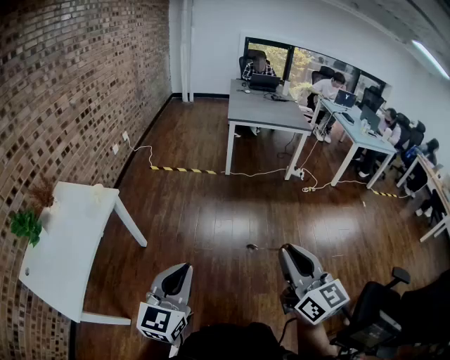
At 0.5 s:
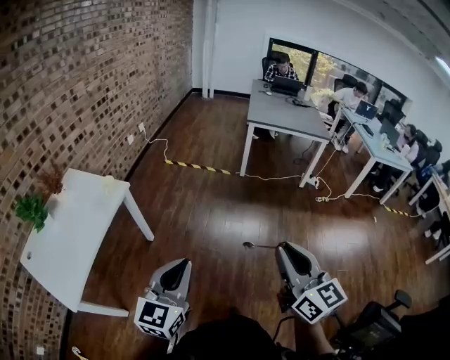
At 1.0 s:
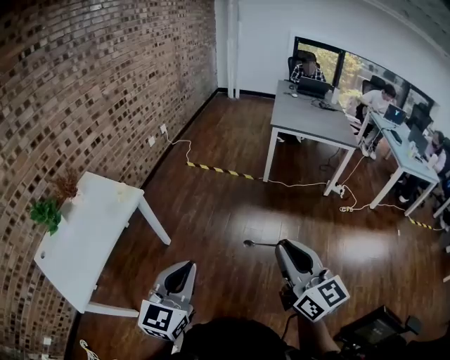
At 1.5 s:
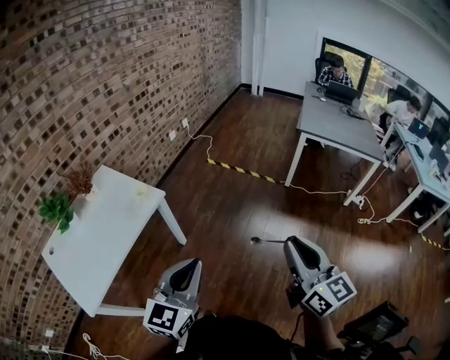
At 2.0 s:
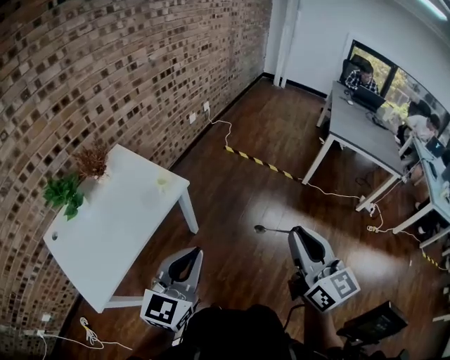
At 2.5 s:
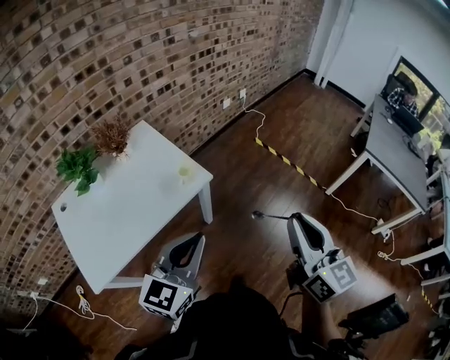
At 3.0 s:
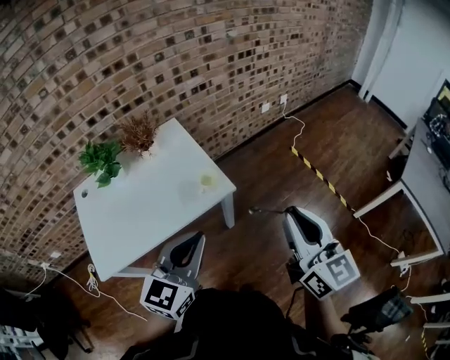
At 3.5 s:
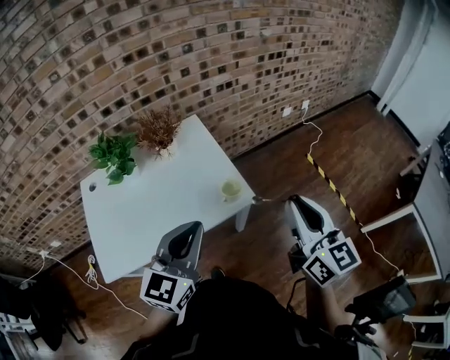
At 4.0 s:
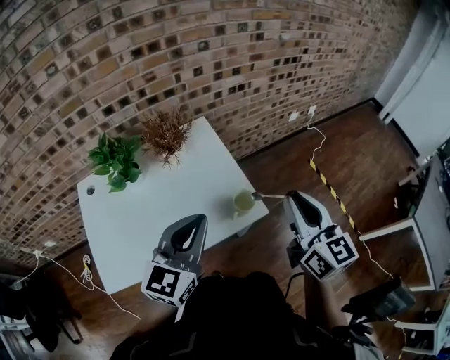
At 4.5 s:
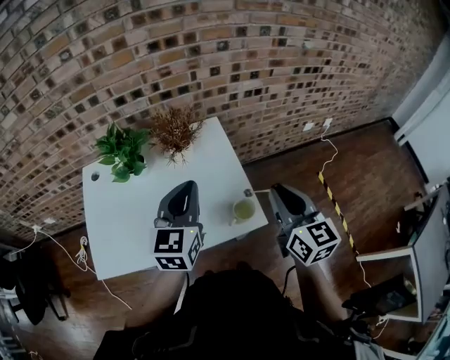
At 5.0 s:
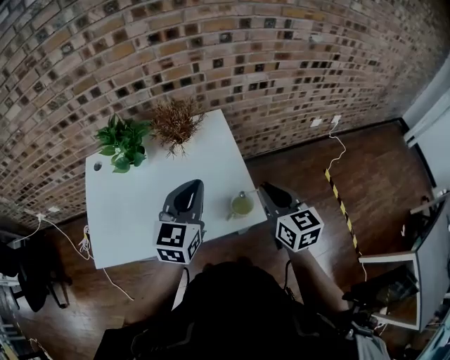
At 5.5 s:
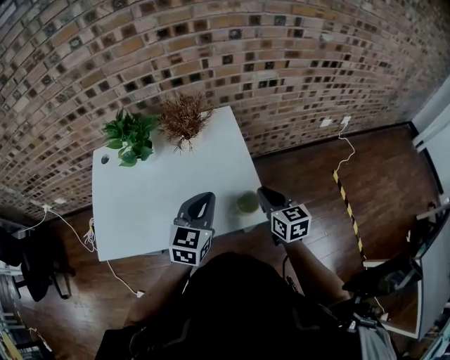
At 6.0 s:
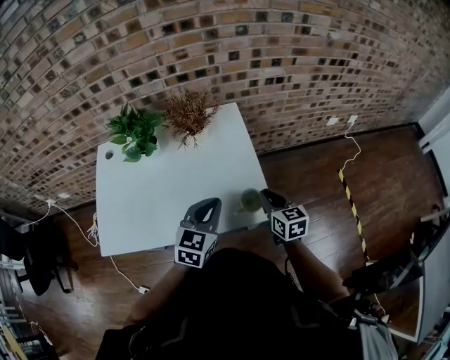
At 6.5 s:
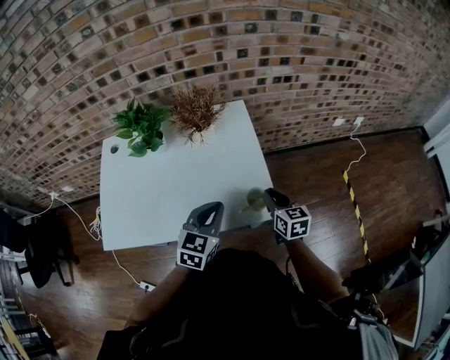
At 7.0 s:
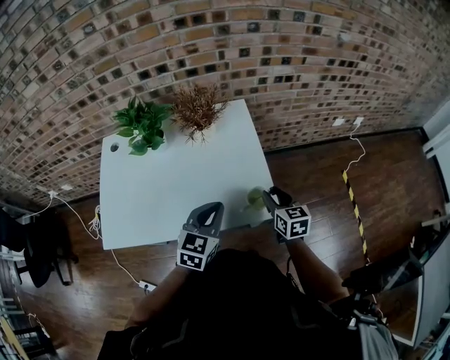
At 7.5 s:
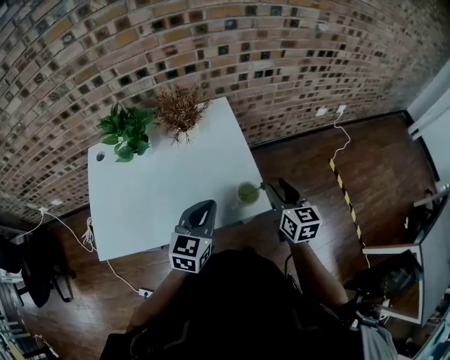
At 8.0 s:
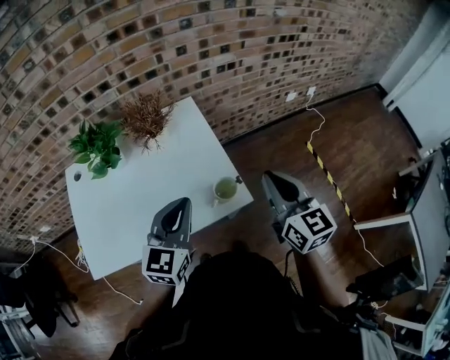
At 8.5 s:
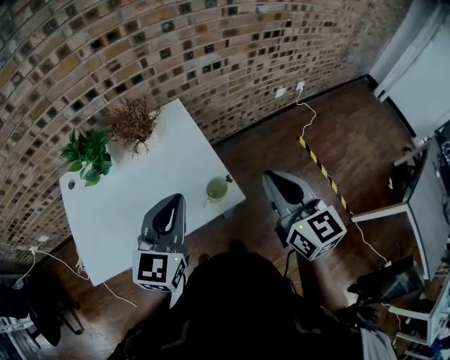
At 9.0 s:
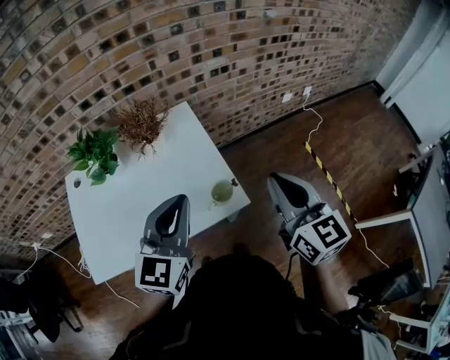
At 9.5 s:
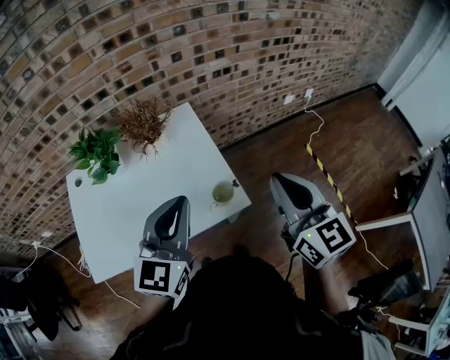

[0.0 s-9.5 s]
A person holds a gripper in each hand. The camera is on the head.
0.0 to 2.0 s: The two grippers go roughly 35 cm forward and to the left. The left gripper rotates some 20 degrees. Meanwhile the right gripper changes its angle by approximately 20 degrees.
2.0 to 4.0 s: The left gripper changes place by roughly 35 cm, and turns by about 30 degrees. Meanwhile the right gripper ends up approximately 50 cm from where it was, and rotates about 30 degrees.
4.0 to 5.5 s: The right gripper travels downward and forward by some 25 cm, and turns by some 30 degrees. The left gripper heads downward and forward, covering approximately 15 cm, and swivels approximately 20 degrees.
5.5 to 7.5 s: The right gripper moves approximately 5 cm downward and comes back, and opens its fingers.
7.5 to 9.5 s: Both grippers travel together upward, approximately 20 cm. The right gripper closes its fingers.

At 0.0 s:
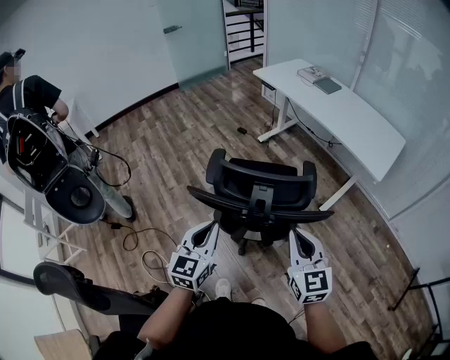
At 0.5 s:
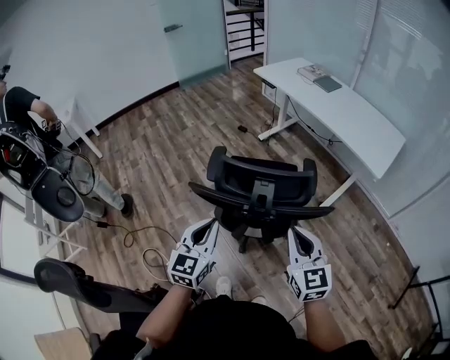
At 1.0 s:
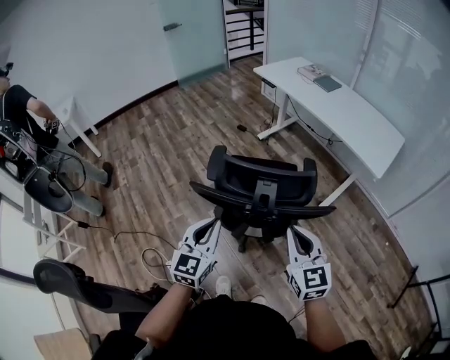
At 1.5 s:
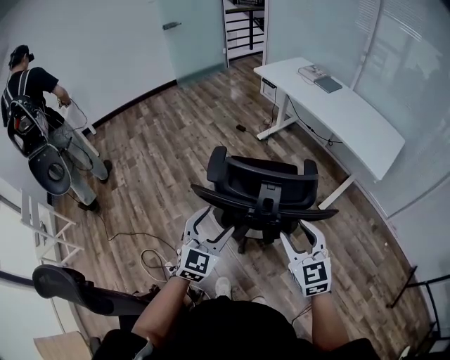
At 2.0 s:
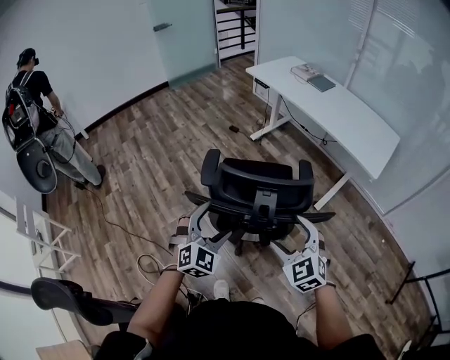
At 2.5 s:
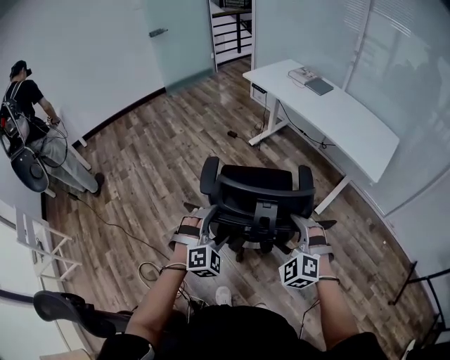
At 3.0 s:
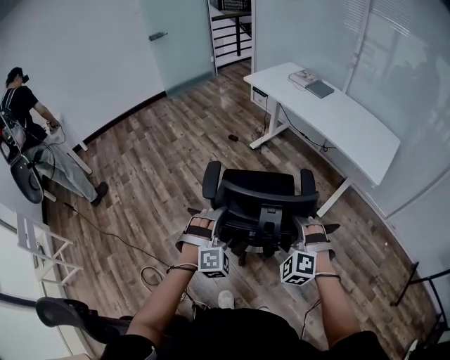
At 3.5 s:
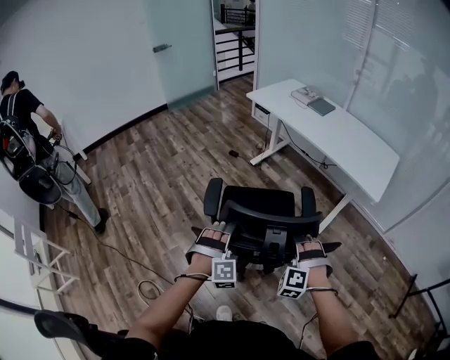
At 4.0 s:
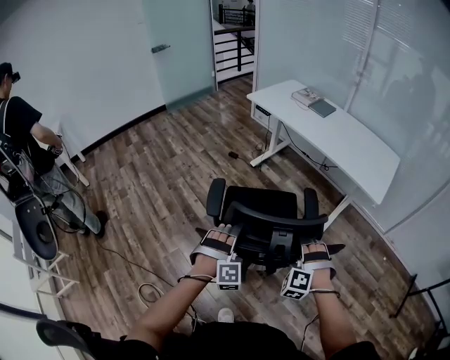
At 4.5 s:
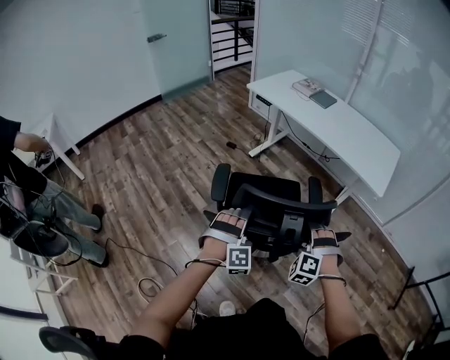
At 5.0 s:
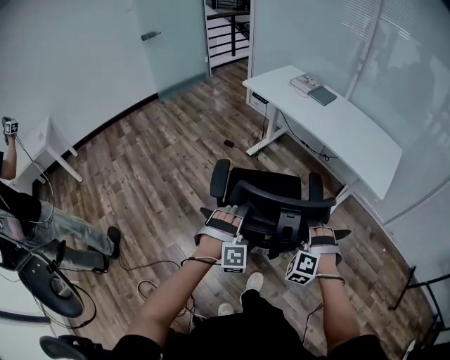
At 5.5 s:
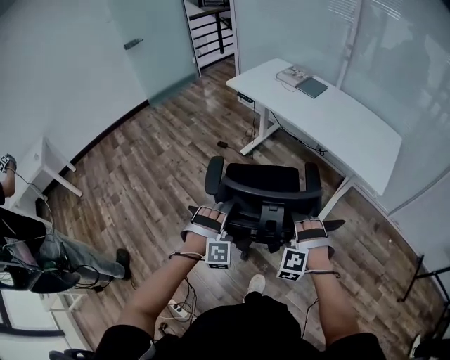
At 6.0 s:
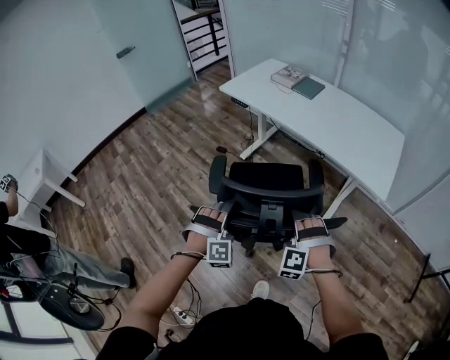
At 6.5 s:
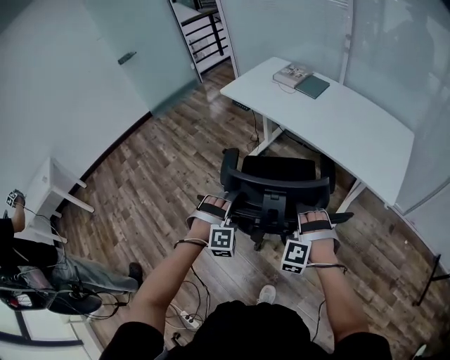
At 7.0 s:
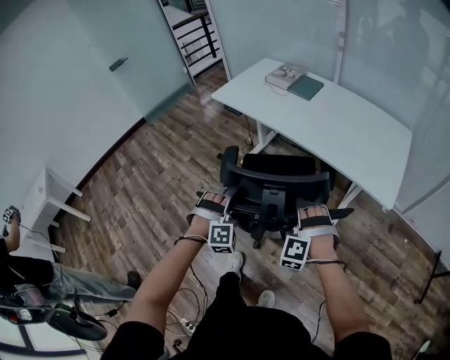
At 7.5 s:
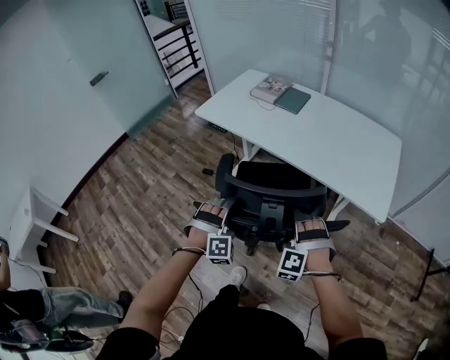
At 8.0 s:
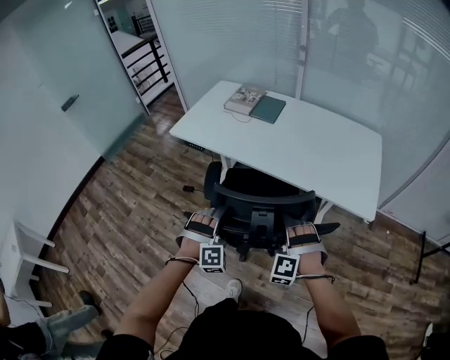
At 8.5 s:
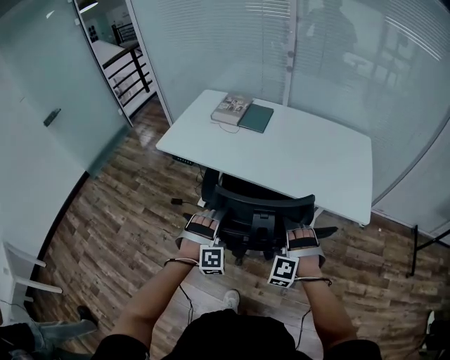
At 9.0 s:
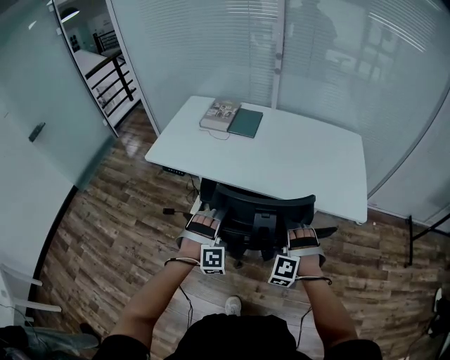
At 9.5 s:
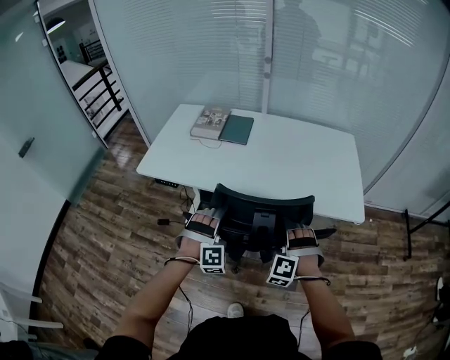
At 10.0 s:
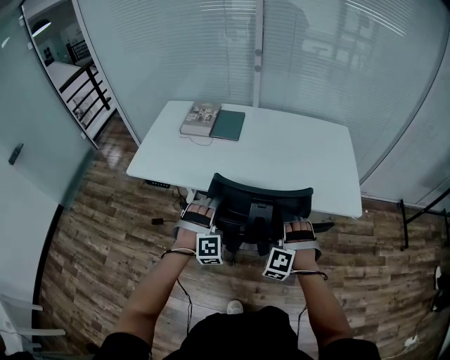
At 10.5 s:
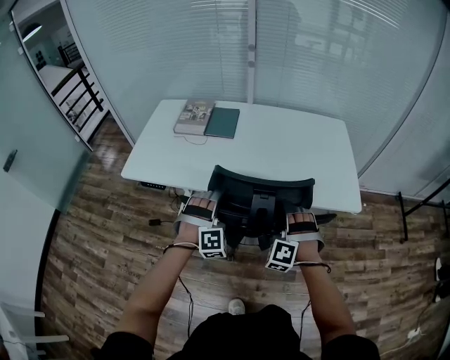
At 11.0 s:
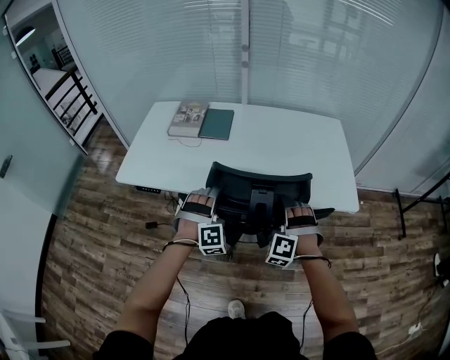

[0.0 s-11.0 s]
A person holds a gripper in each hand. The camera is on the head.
0.0 to 2.0 s: The left gripper ends up some 5 cm from where it was, twists about 40 degrees clockwise, seen from behind, and opens.
2.0 to 3.5 s: The left gripper goes about 5 cm downward, and rotates some 40 degrees.
3.5 to 5.5 s: The left gripper ends up roughly 15 cm from where it was.
5.5 to 7.5 s: The left gripper shifts by some 25 cm.
7.5 to 9.0 s: The left gripper ends up about 15 cm from where it was.
9.0 to 11.0 s: The left gripper shifts by about 15 cm.

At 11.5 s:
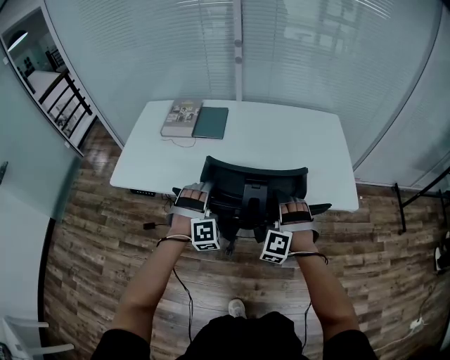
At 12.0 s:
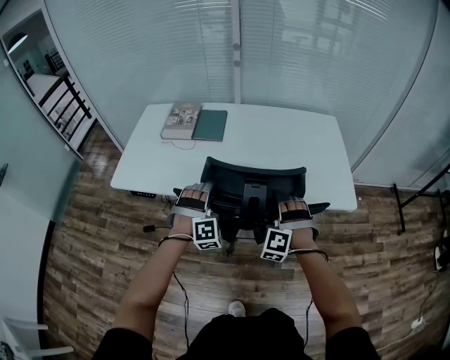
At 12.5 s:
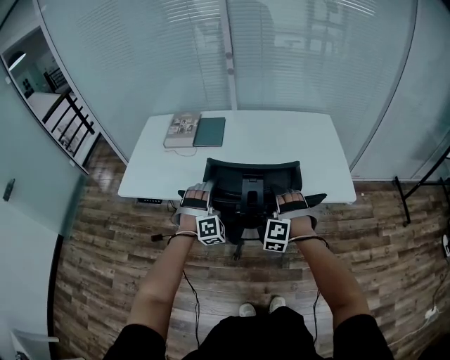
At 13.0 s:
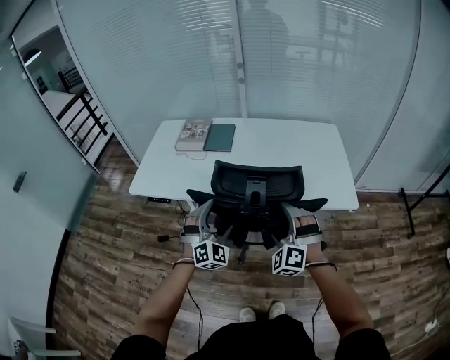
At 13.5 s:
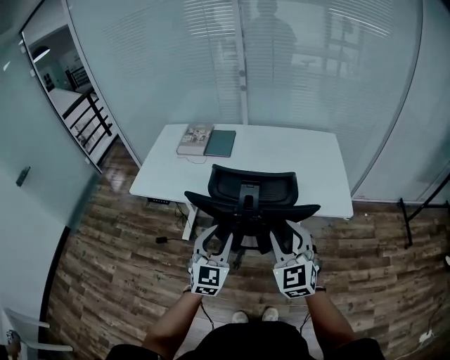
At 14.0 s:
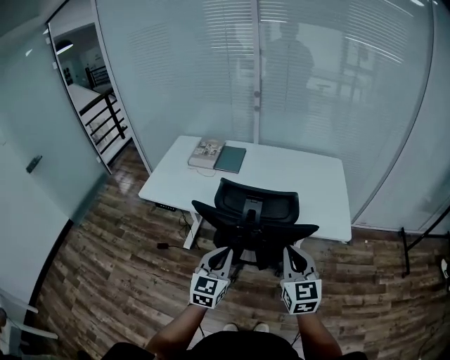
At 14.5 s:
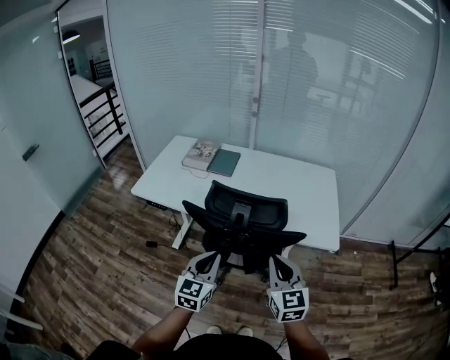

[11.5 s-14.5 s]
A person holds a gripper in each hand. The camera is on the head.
11.5 to 13.0 s: The left gripper ends up roughly 10 cm from where it was, and rotates approximately 30 degrees.
13.0 to 14.5 s: The left gripper moves about 15 cm, twists roughly 60 degrees counterclockwise, seen from behind, and closes its fingers.

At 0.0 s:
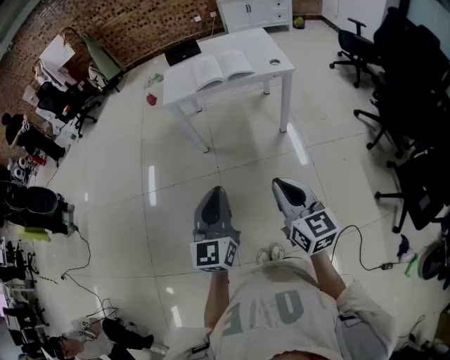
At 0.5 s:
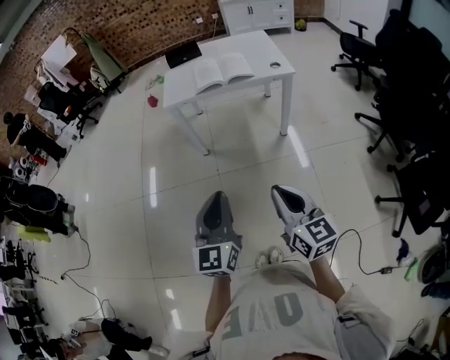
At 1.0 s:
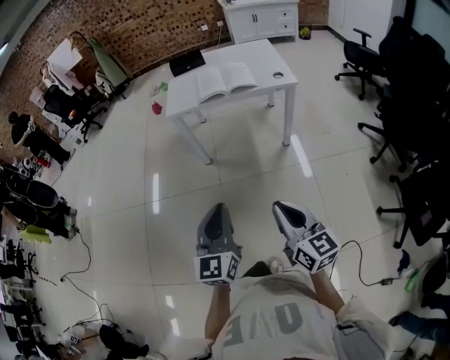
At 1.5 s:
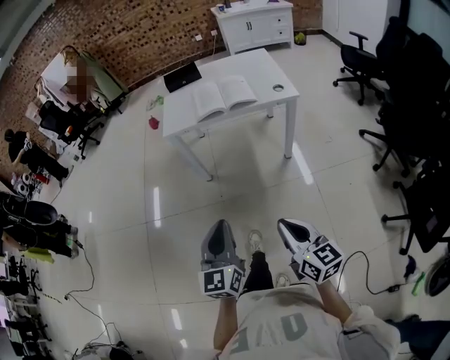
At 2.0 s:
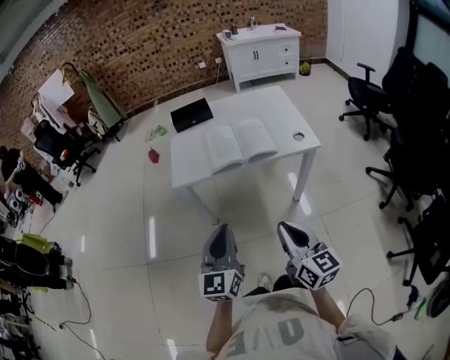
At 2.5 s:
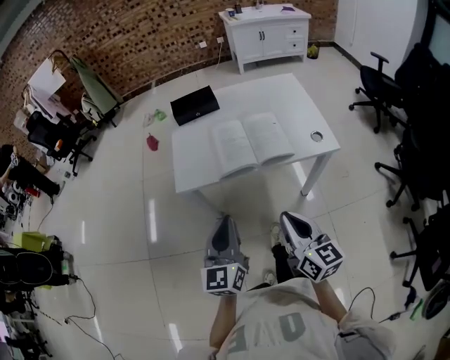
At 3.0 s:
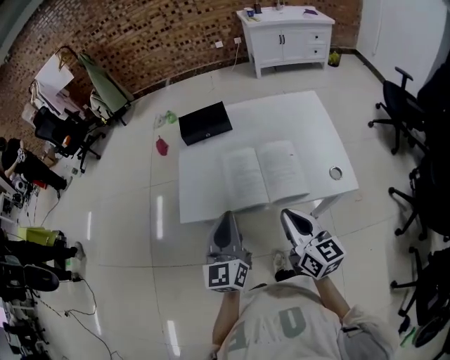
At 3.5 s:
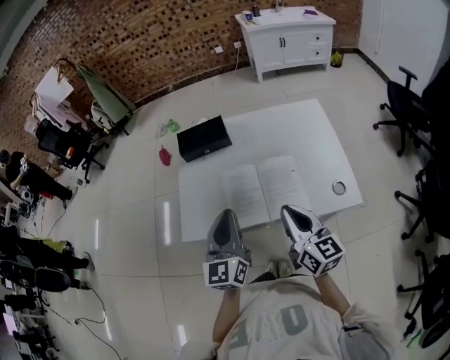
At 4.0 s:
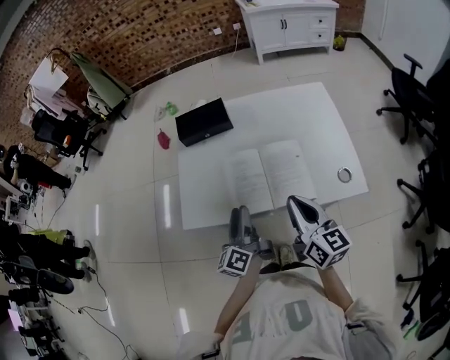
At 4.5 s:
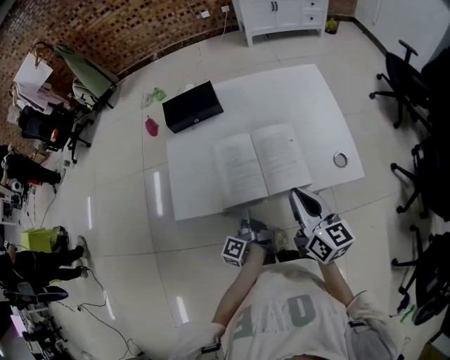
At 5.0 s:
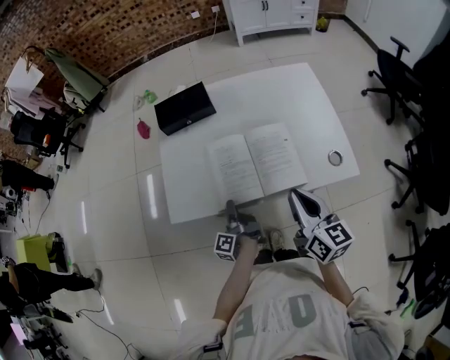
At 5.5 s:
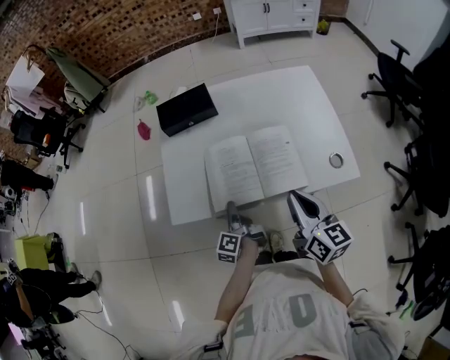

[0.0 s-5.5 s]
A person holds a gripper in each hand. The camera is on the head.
0.0 to 2.0 s: The grippers both shift forward by about 30 cm.
2.0 to 3.5 s: Both grippers move forward, some 40 cm.
3.5 to 5.5 s: The left gripper goes some 25 cm downward, twists roughly 70 degrees counterclockwise, seen from behind, and opens up.
